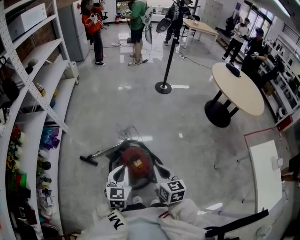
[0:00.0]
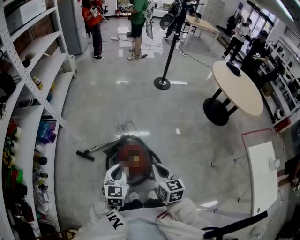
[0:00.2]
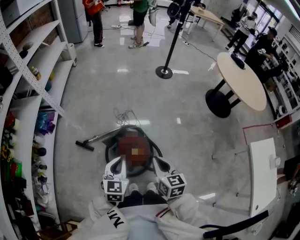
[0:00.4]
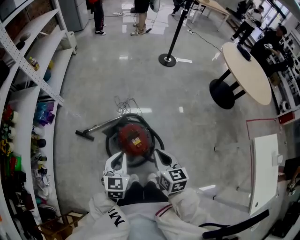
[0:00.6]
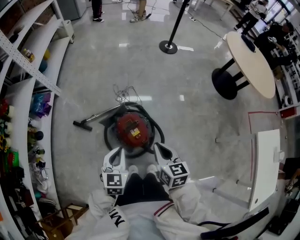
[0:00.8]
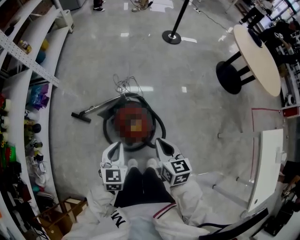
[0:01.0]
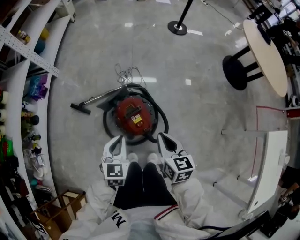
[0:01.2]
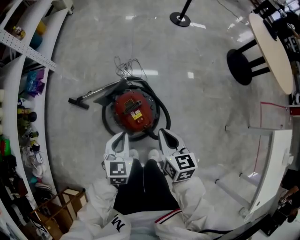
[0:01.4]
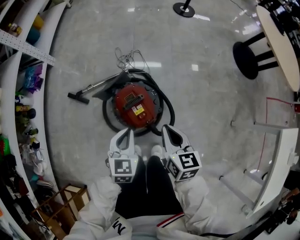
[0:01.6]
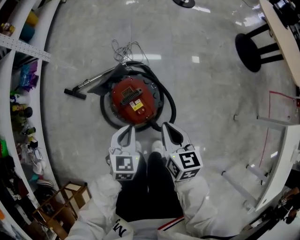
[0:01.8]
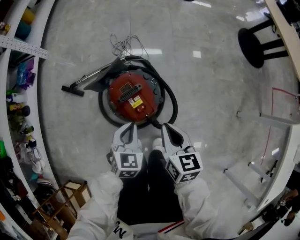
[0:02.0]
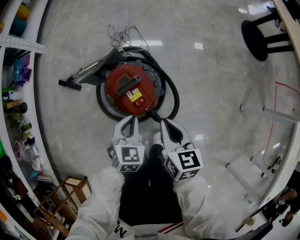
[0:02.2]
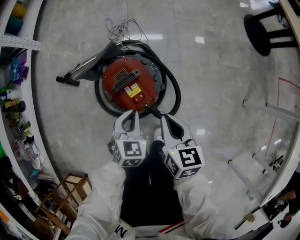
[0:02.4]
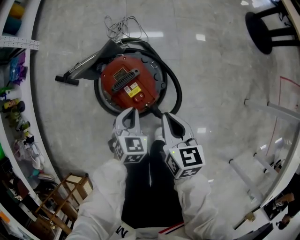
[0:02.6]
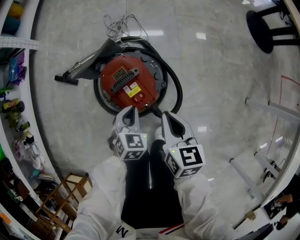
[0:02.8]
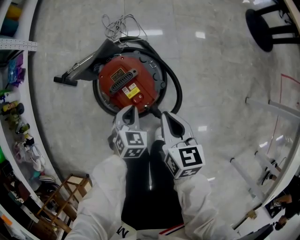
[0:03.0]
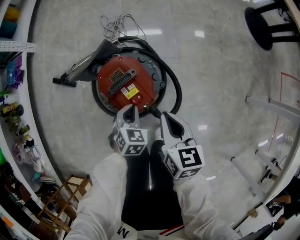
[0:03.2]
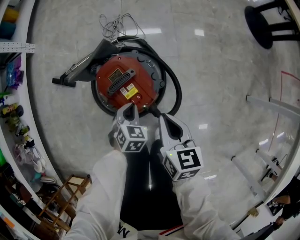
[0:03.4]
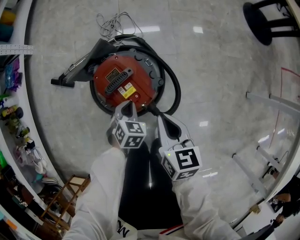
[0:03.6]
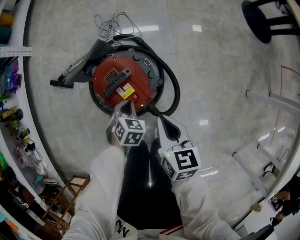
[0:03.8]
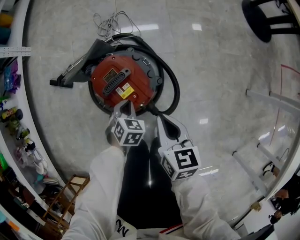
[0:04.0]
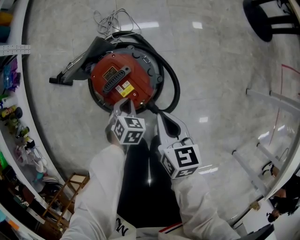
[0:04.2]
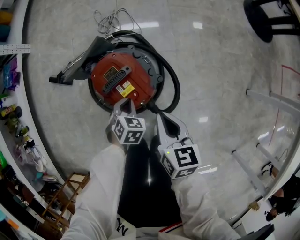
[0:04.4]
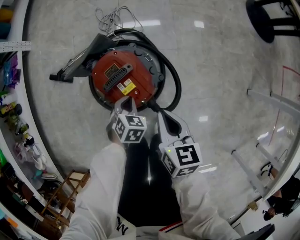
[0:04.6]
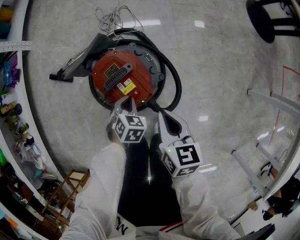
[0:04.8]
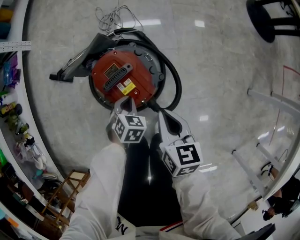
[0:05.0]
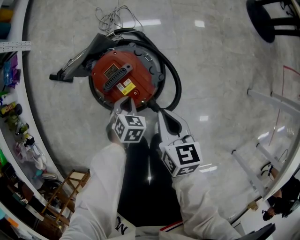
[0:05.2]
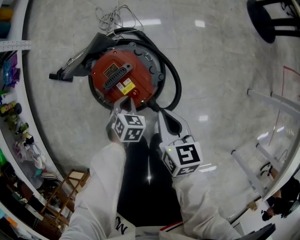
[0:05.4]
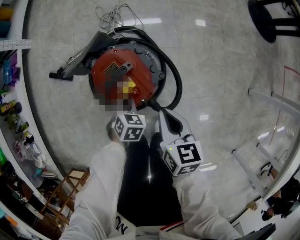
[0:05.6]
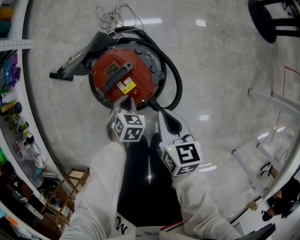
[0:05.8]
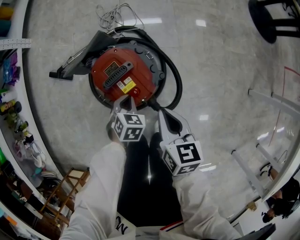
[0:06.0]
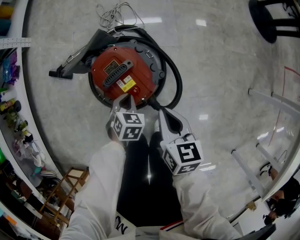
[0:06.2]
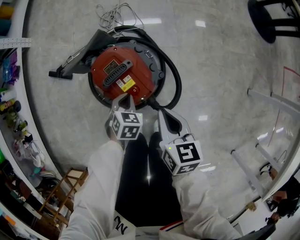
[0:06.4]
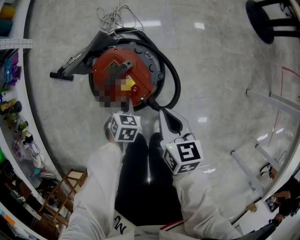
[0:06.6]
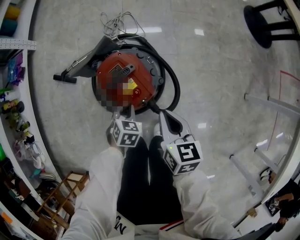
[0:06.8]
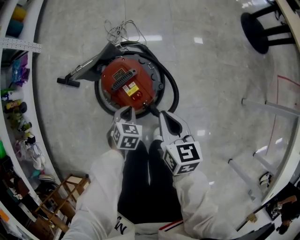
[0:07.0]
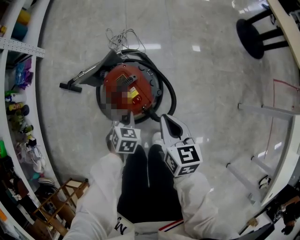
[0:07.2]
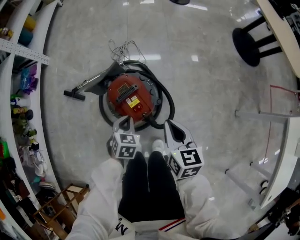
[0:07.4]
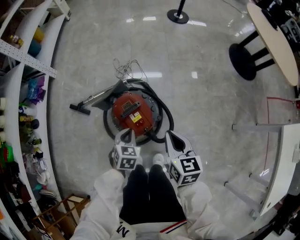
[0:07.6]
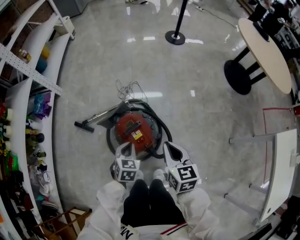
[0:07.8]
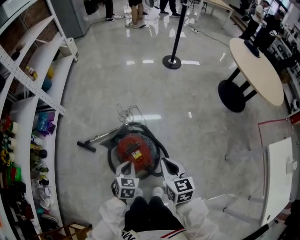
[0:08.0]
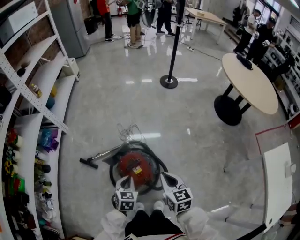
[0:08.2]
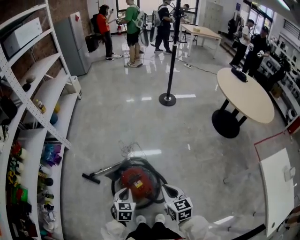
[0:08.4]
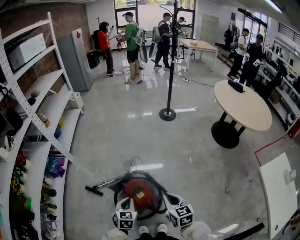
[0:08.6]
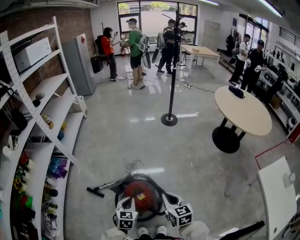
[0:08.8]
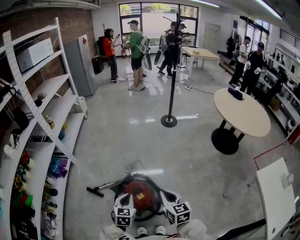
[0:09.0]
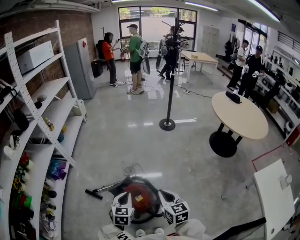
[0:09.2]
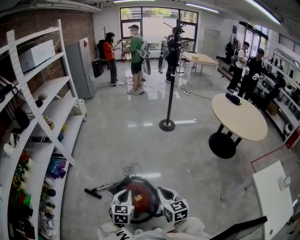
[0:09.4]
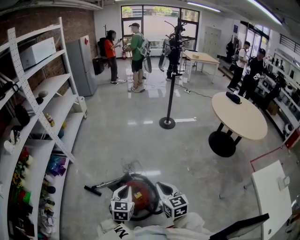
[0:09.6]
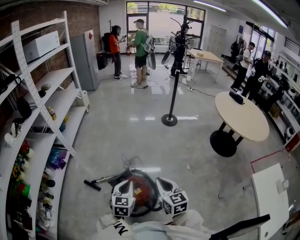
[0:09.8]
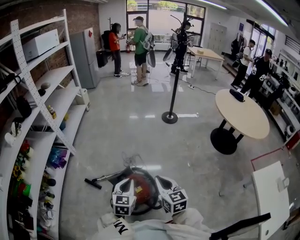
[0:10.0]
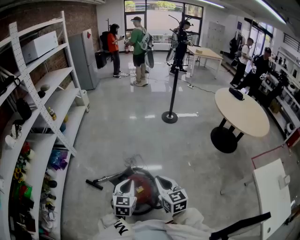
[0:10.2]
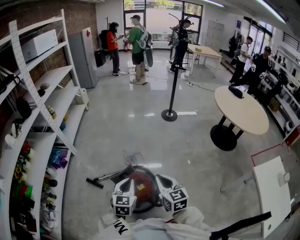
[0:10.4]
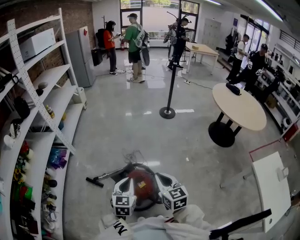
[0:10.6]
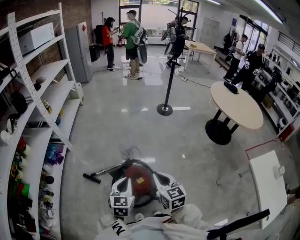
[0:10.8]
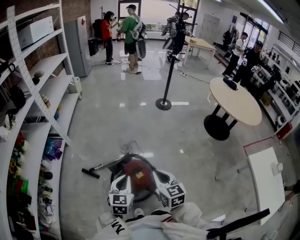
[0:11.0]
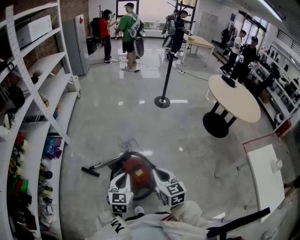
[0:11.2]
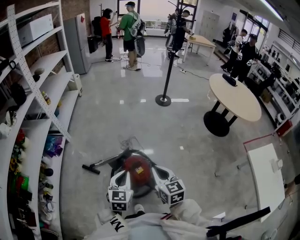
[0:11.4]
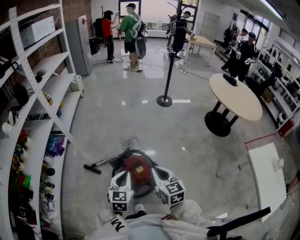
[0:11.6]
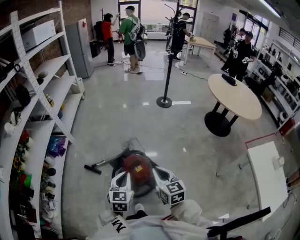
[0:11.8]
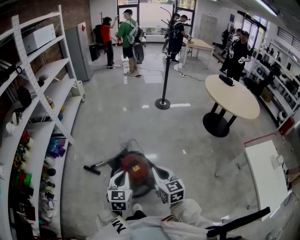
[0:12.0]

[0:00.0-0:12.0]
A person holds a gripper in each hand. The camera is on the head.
0:00.0 to 0:01.6: Both grippers move downward, some 20 cm.
0:01.6 to 0:03.0: The left gripper goes about 20 cm downward, and swivels roughly 20 degrees. Meanwhile the right gripper shifts some 10 cm downward.
0:03.0 to 0:04.4: The grippers move only a little.
0:04.4 to 0:06.0: Neither gripper changes place.
0:06.0 to 0:07.6: Both grippers travel together upward, some 15 cm.
0:07.6 to 0:09.0: Both grippers travel together upward, approximately 20 cm. The left gripper changes its angle by some 20 degrees.
0:09.0 to 0:10.4: The right gripper shifts by about 5 cm. Meanwhile the left gripper shifts some 5 cm upward.
0:10.4 to 0:12.0: The grippers both shift backward by roughly 10 cm.

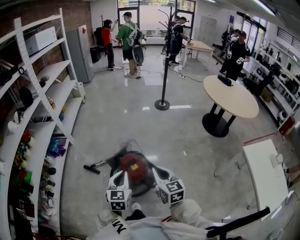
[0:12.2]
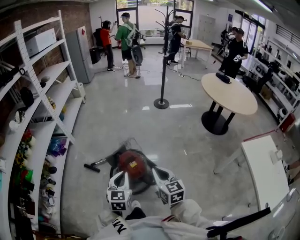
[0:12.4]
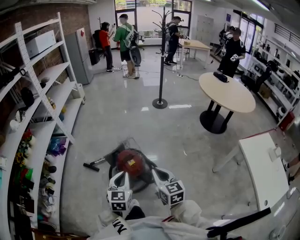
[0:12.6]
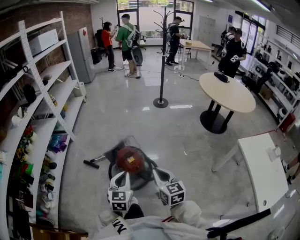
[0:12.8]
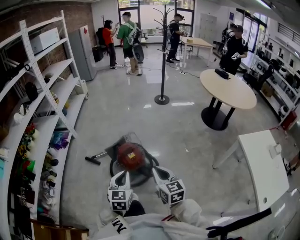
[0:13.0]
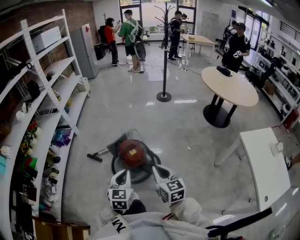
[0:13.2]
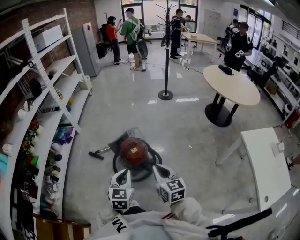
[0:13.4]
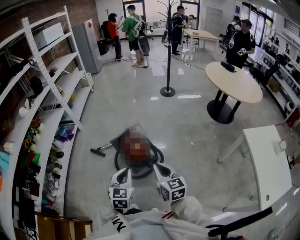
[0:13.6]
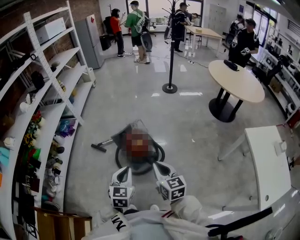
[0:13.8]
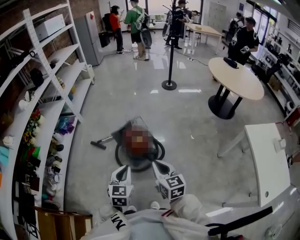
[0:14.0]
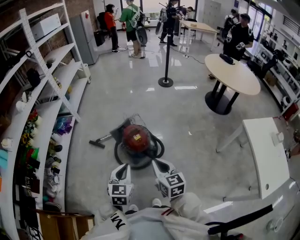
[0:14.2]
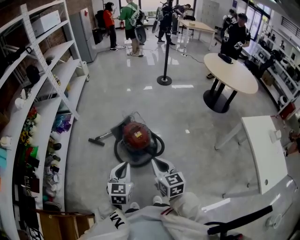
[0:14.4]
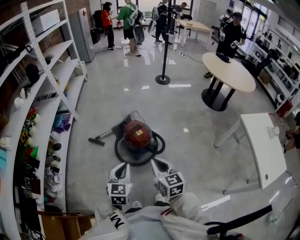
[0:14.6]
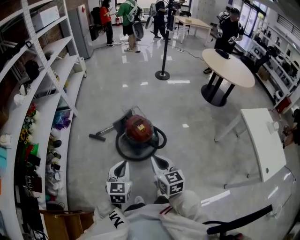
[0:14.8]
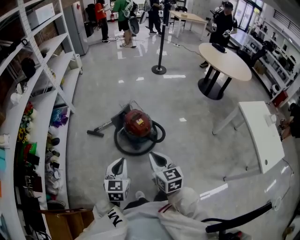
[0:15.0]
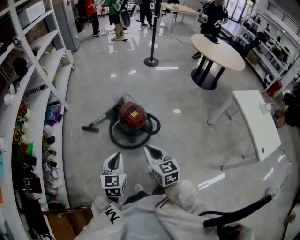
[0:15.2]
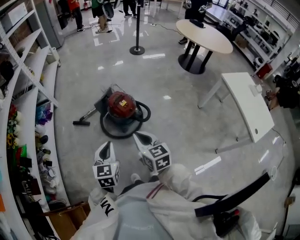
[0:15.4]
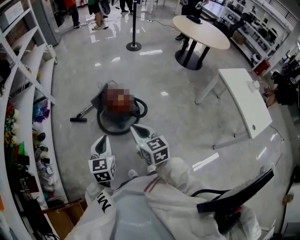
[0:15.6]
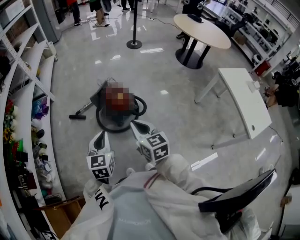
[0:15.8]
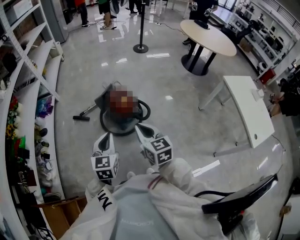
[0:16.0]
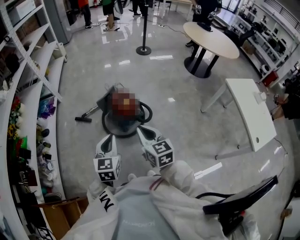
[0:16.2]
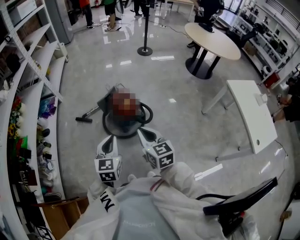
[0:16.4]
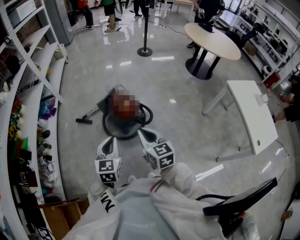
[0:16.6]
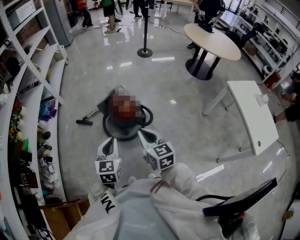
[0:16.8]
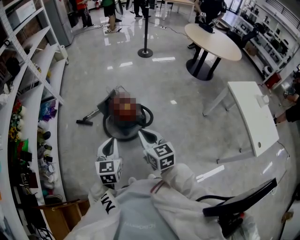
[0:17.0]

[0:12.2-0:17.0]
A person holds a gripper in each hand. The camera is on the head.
0:12.2 to 0:13.8: The two grippers go about 15 cm backward.
0:13.8 to 0:15.4: Both grippers travel together to the left and backward, roughly 15 cm.
0:15.4 to 0:17.0: Both grippers travel together to the right, about 5 cm.

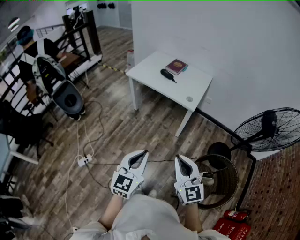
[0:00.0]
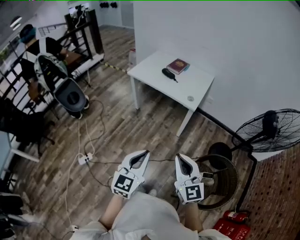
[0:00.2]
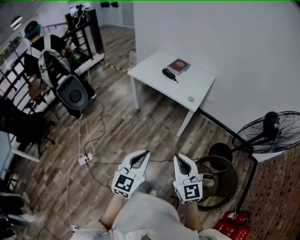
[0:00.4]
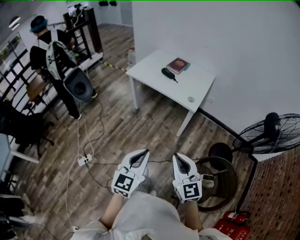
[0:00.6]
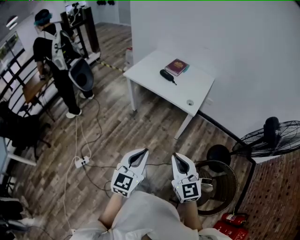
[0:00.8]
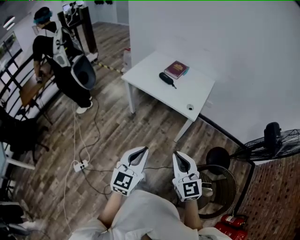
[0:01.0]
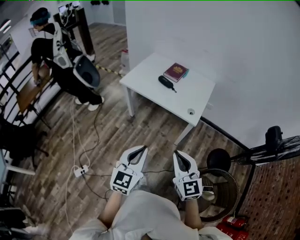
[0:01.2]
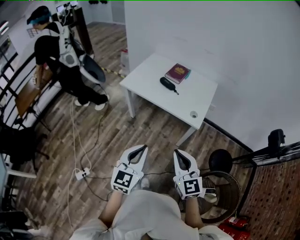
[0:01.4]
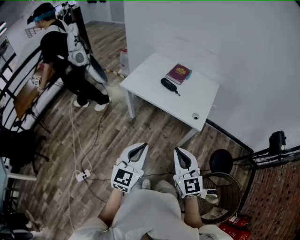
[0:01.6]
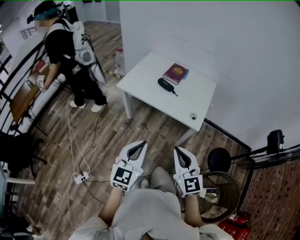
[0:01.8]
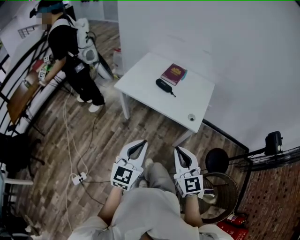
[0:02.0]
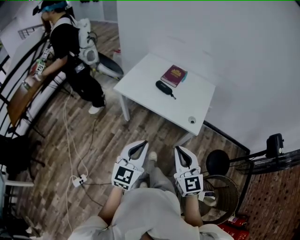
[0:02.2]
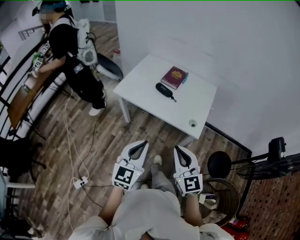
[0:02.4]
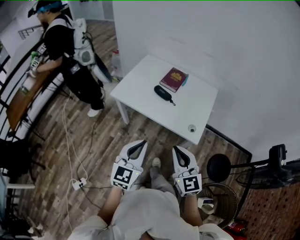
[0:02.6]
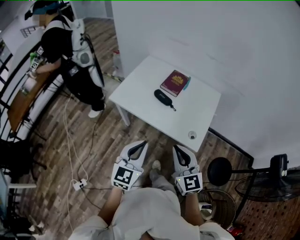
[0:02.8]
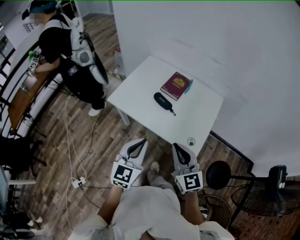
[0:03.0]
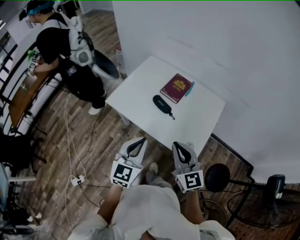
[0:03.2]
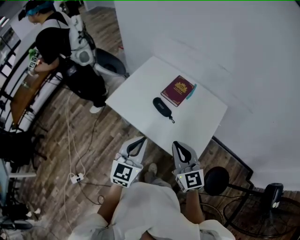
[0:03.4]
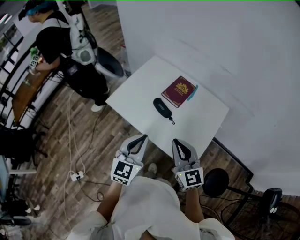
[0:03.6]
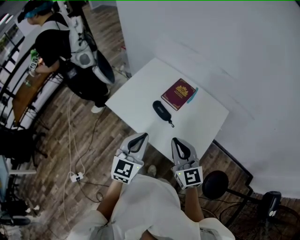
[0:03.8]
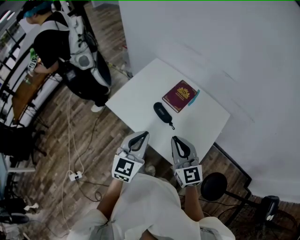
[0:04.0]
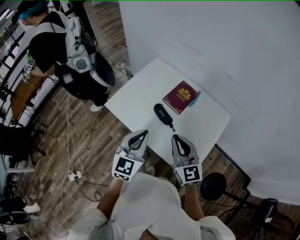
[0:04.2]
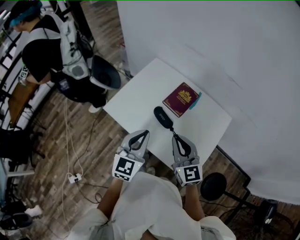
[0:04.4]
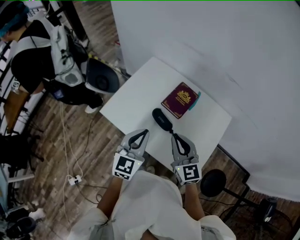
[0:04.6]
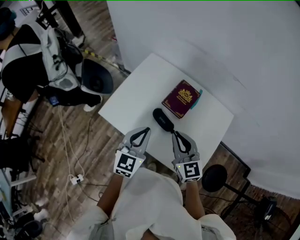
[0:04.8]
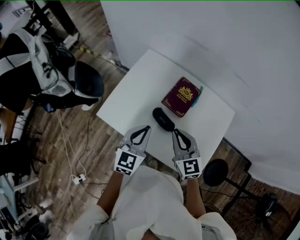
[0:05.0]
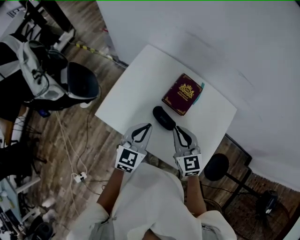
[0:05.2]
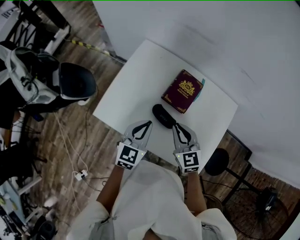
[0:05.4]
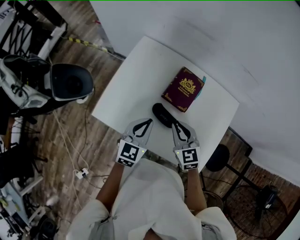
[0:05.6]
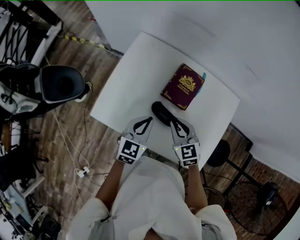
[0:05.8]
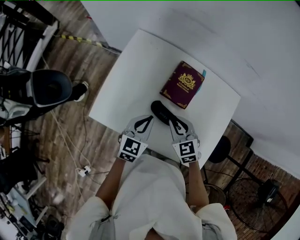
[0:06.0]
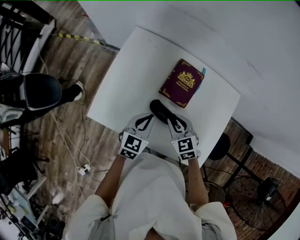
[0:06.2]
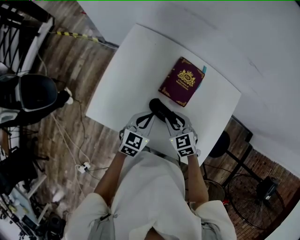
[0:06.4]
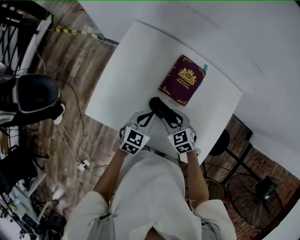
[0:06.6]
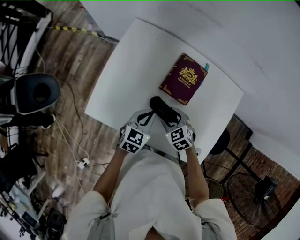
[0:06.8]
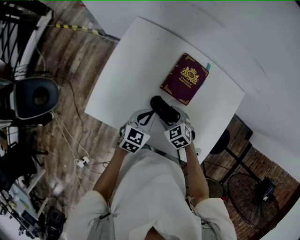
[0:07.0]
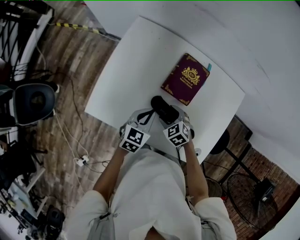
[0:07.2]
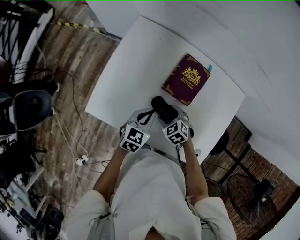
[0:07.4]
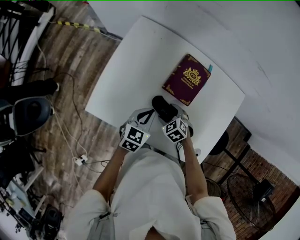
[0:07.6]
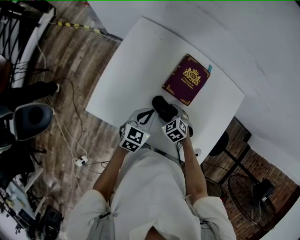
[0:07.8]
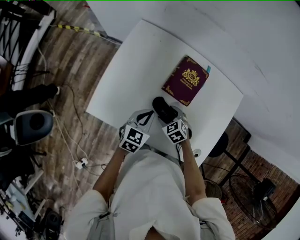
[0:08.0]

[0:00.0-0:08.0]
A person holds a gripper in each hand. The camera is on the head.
0:00.0 to 0:01.6: Both grippers travel together forward, some 25 cm.
0:01.6 to 0:03.2: Both grippers move forward, about 30 cm.
0:03.2 to 0:04.8: The grippers both shift forward by some 20 cm.
0:04.8 to 0:06.4: Both grippers move downward and forward, some 20 cm. The right gripper points its fingers some 30 degrees further downward; the left gripper turns by roughly 30 degrees.
0:06.4 to 0:08.0: The right gripper shifts roughly 10 cm downward, and opens.
